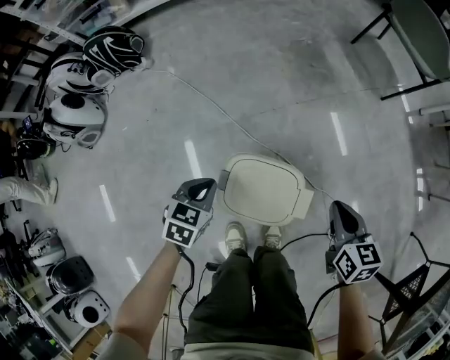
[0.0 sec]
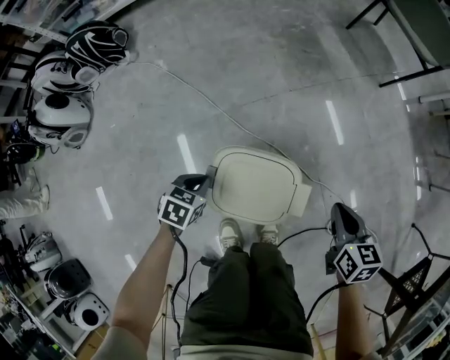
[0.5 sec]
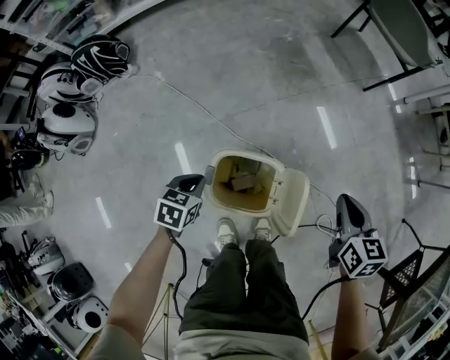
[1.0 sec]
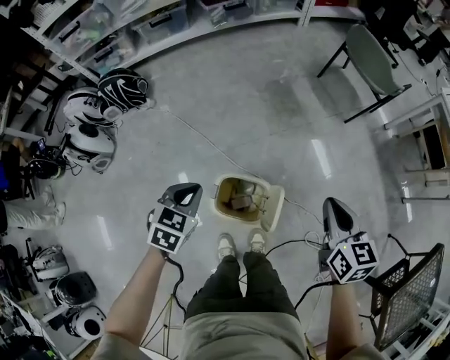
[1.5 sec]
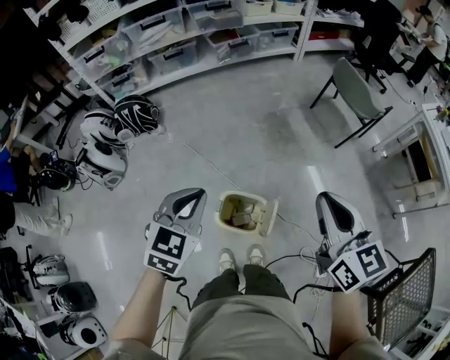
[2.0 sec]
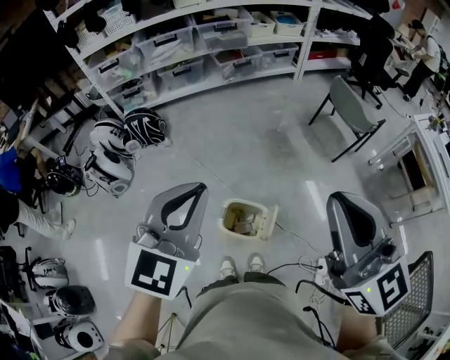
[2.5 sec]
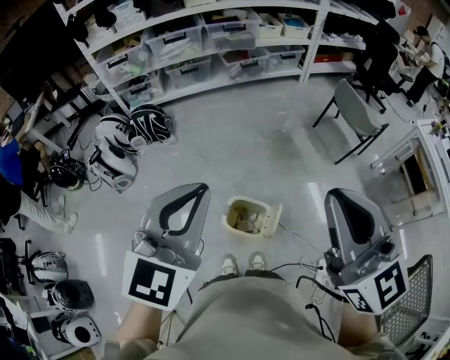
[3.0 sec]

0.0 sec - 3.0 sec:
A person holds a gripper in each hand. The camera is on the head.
0.0 sec - 1.5 sec: The grippers both shift upward by some 25 cm.
1.5 sec - 3.0 sec: The two grippers go approximately 40 cm upward. The right gripper points its fingers some 30 degrees further upward; the left gripper tilts its fingers approximately 40 degrees upward.

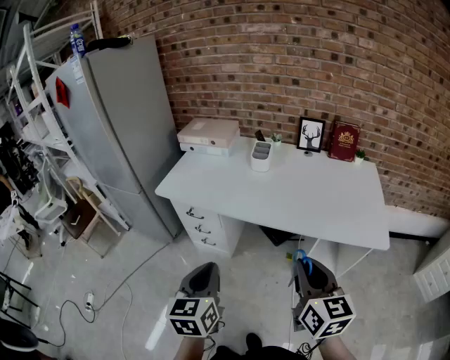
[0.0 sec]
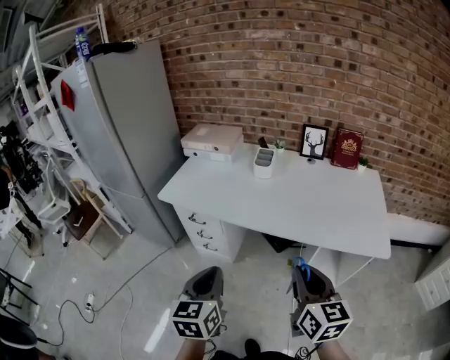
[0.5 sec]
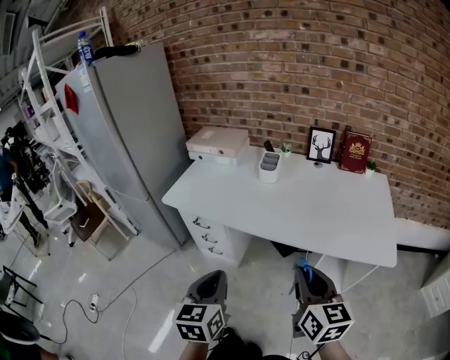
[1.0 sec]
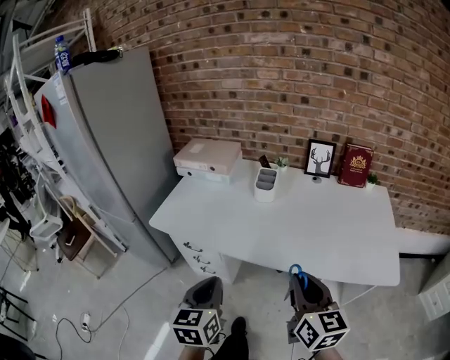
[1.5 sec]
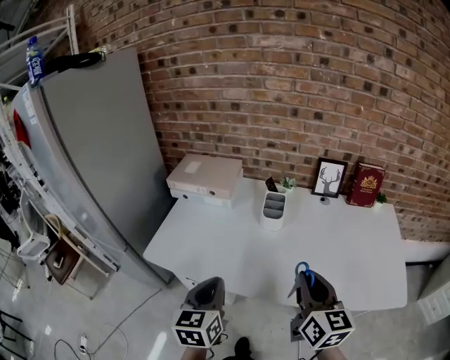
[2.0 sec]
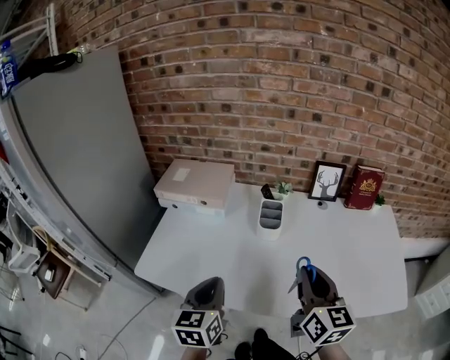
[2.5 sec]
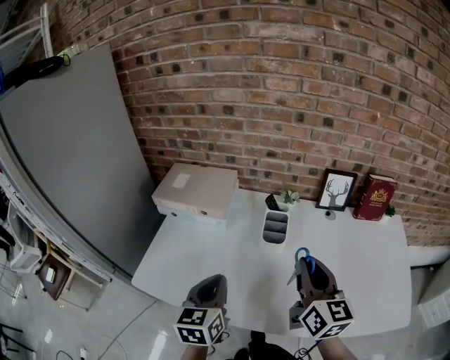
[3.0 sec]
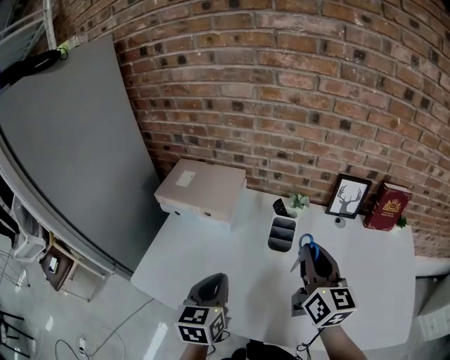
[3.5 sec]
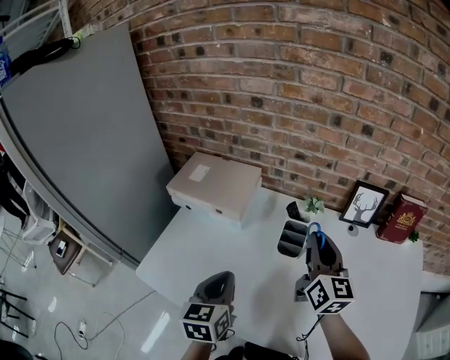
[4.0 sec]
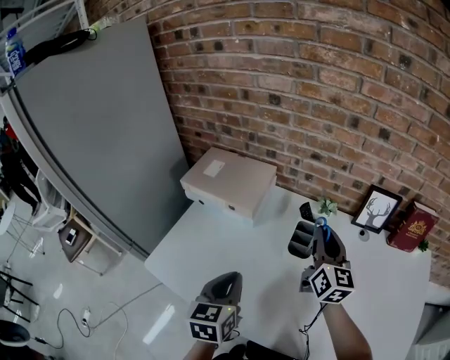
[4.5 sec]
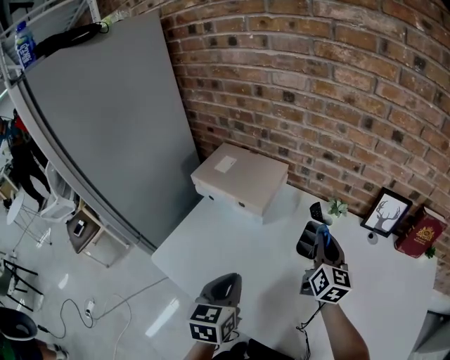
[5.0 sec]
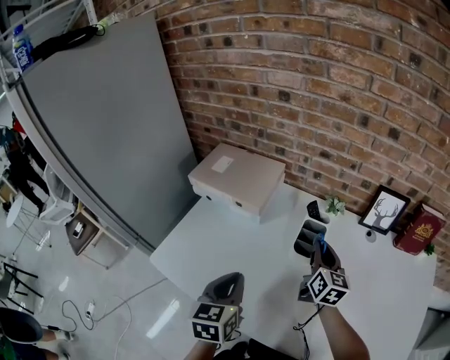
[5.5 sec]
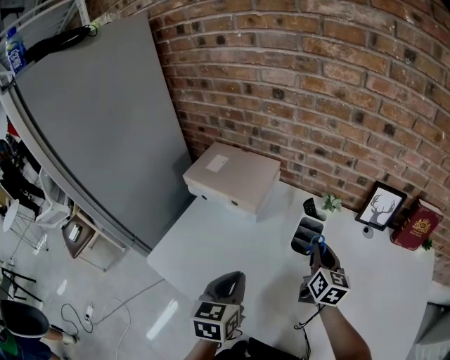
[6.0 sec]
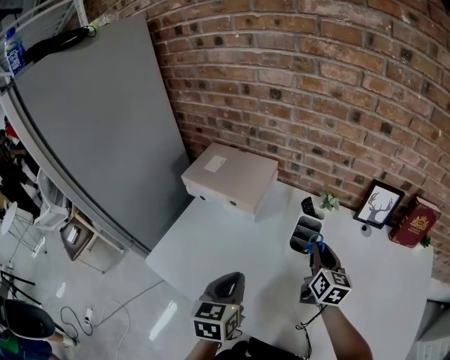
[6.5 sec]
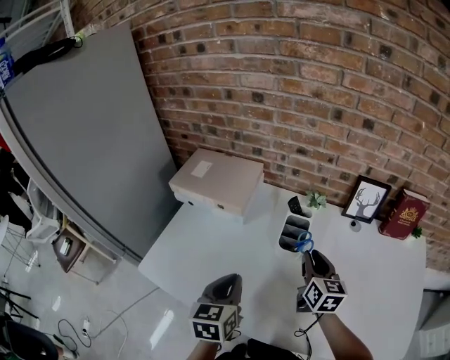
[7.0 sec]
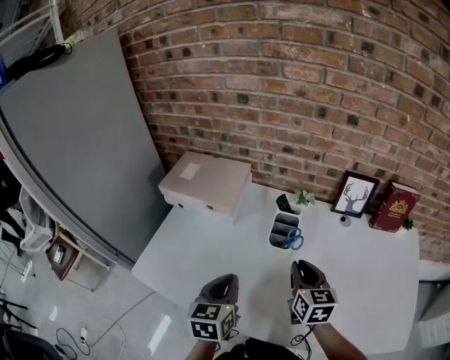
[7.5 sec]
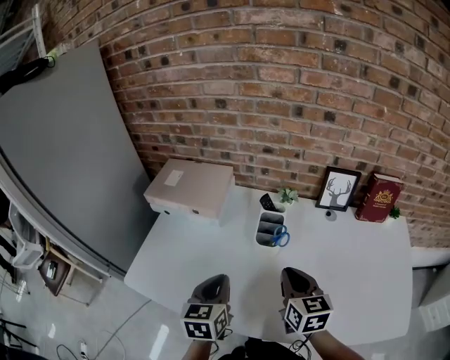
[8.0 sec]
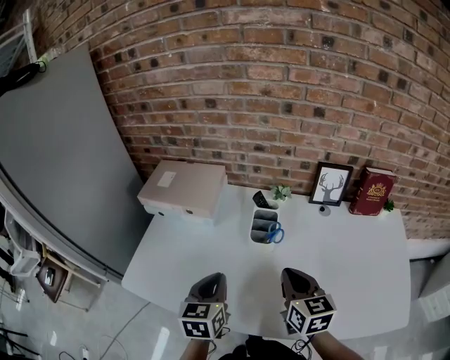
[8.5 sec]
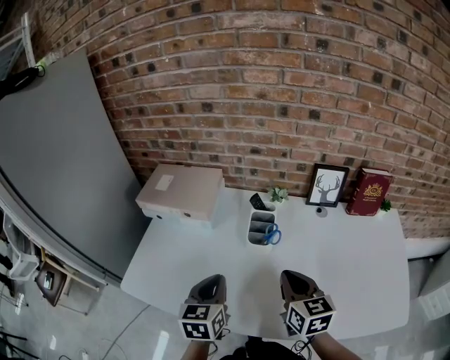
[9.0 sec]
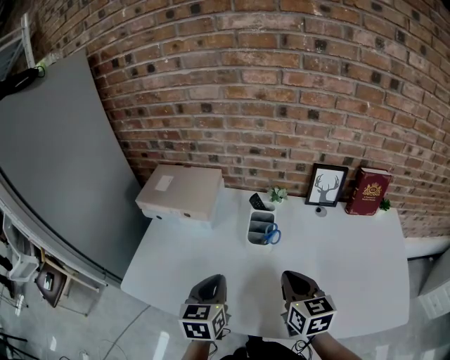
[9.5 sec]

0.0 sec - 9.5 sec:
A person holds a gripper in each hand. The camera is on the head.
0.0 sec - 2.0 sec: Both grippers move forward, roughly 30 cm.
2.0 sec - 4.0 sec: The left gripper shifts some 20 cm forward. Meanwhile the right gripper moves forward, approximately 30 cm.
4.0 sec - 5.5 sec: The right gripper is displaced downward by some 15 cm.
5.5 sec - 7.5 sec: The right gripper shifts approximately 10 cm backward.
7.5 sec - 9.5 sec: The right gripper shifts approximately 5 cm backward.

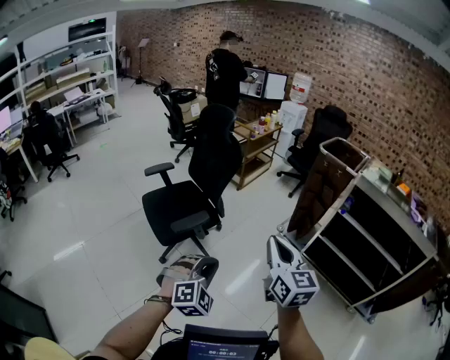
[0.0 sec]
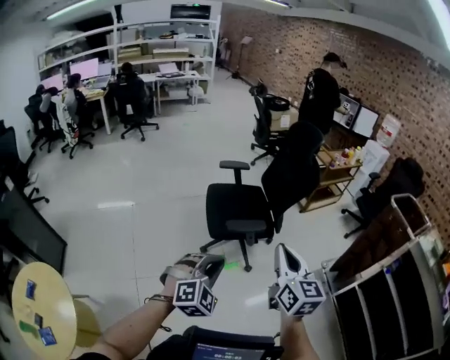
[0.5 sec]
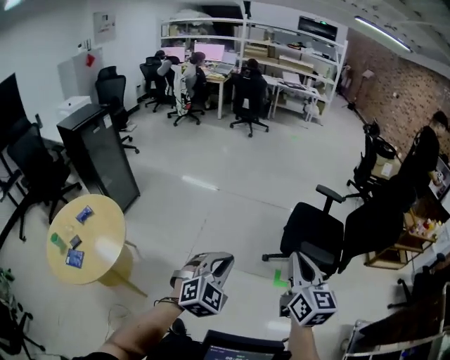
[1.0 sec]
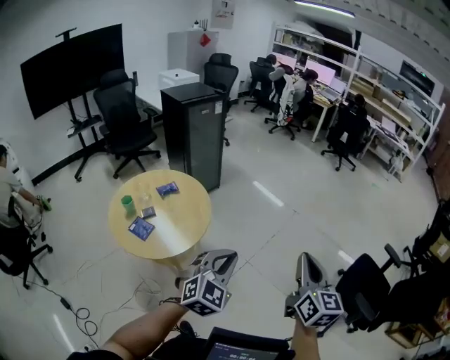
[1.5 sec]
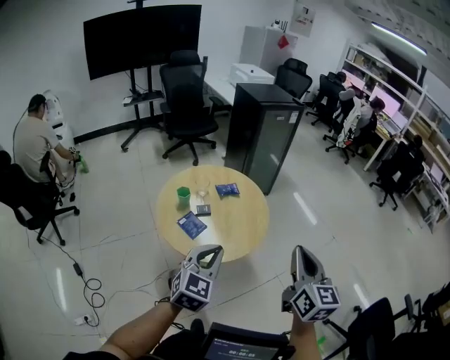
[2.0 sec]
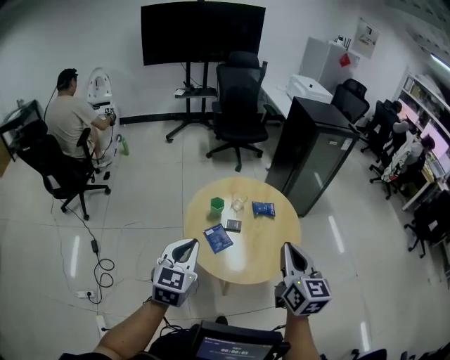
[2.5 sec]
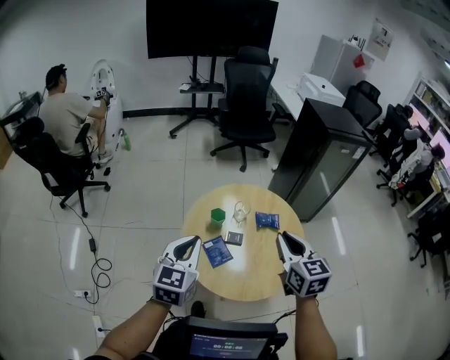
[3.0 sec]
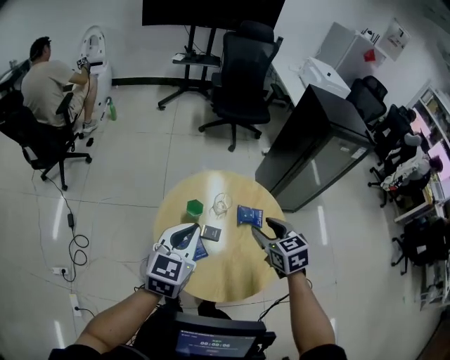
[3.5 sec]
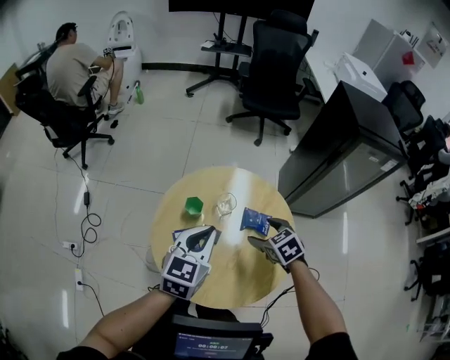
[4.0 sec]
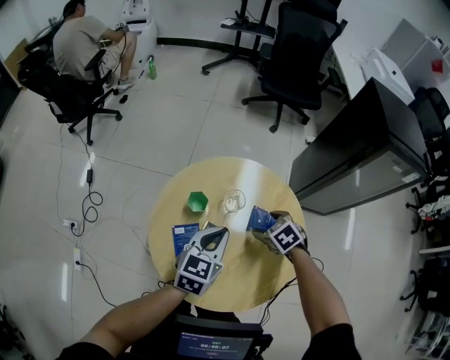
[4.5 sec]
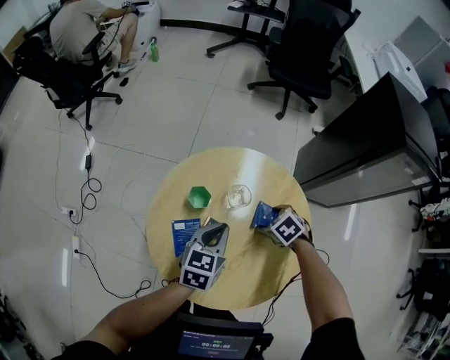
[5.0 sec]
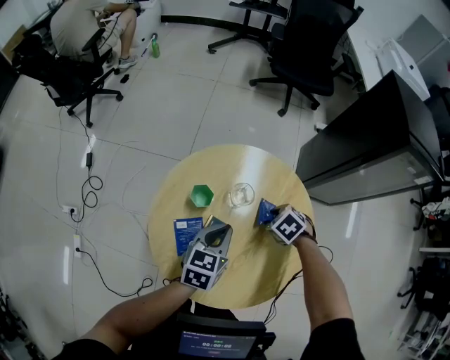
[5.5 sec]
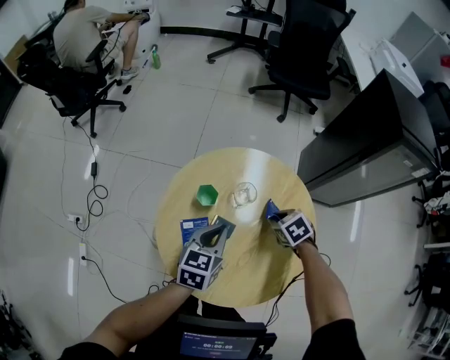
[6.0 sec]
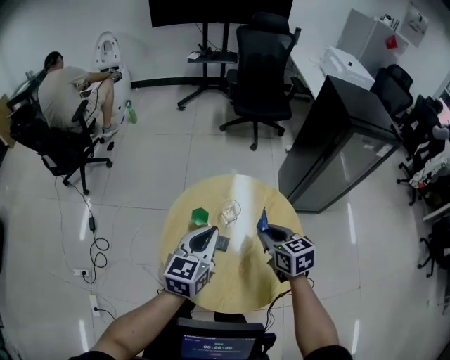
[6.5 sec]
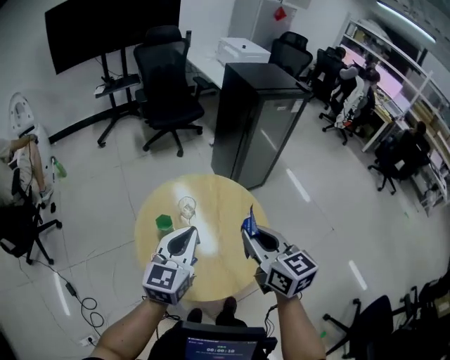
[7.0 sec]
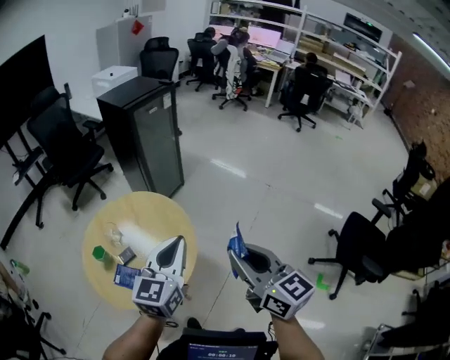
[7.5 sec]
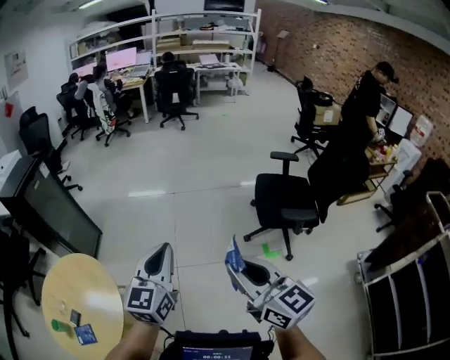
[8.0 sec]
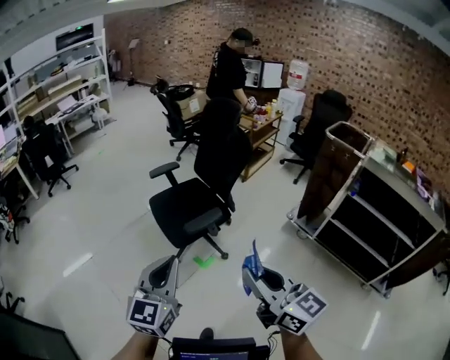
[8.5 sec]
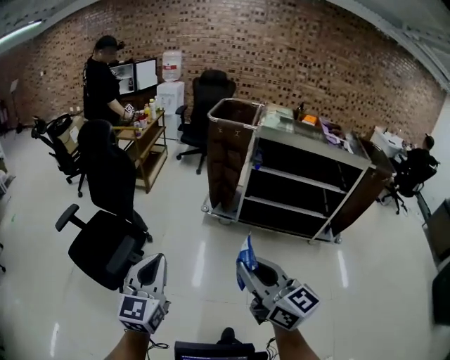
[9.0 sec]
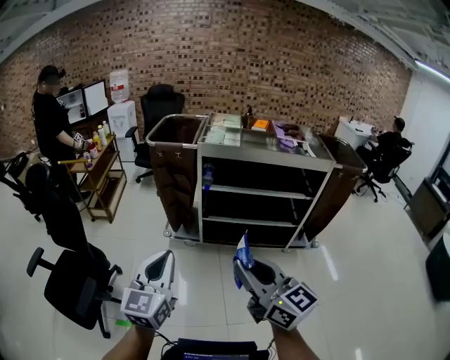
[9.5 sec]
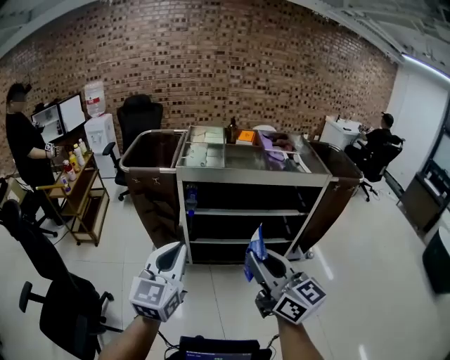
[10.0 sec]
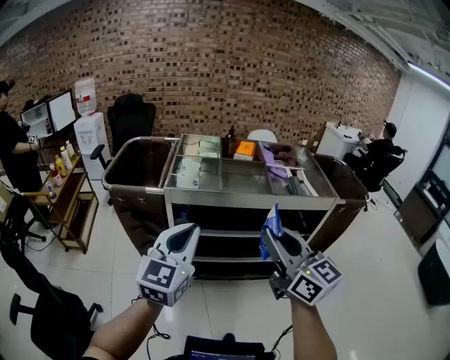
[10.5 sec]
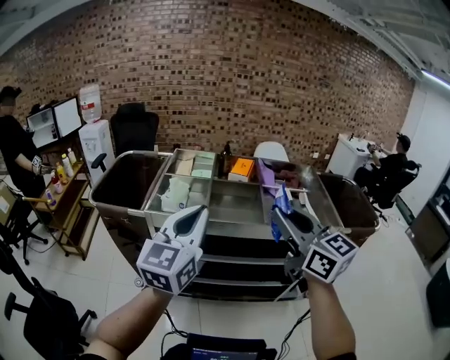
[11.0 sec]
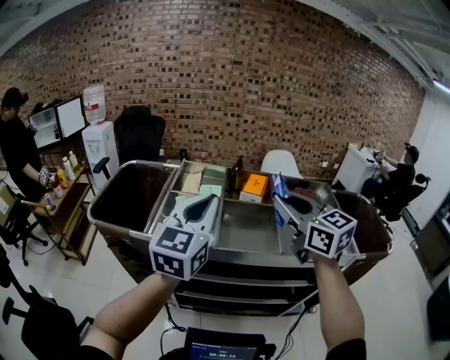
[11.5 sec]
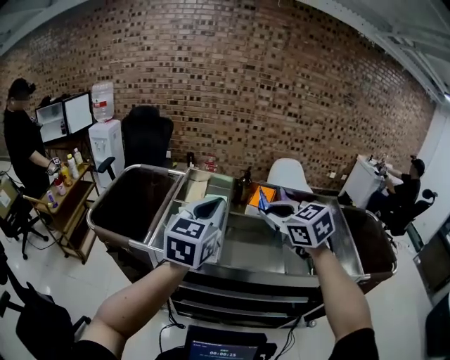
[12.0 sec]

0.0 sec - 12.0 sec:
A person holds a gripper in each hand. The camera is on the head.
0.0 sec - 2.0 sec: The pair of grippers is taken roughly 1 m. The left gripper rotates roughly 120 degrees. Meanwhile the right gripper rotates some 100 degrees.
2.0 sec - 4.0 sec: The pair of grippers is taken about 60 cm. The left gripper rotates about 40 degrees. The right gripper tips its fingers downward by some 50 degrees, and opens its fingers.
4.0 sec - 6.0 sec: The two grippers go about 15 cm downward. The right gripper closes.
6.0 sec - 8.0 sec: The pair of grippers is taken roughly 1 m. The right gripper points its fingers some 70 degrees further upward; the left gripper tips its fingers upward by some 30 degrees.
8.0 sec - 10.0 sec: Both grippers are carried roughly 1.5 m. The right gripper swivels some 100 degrees. Meanwhile the left gripper rotates roughly 100 degrees.
10.0 sec - 12.0 sec: Both grippers are carried forward, some 90 cm. The right gripper points its fingers about 40 degrees further downward.

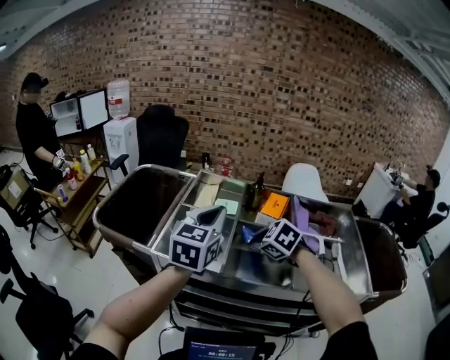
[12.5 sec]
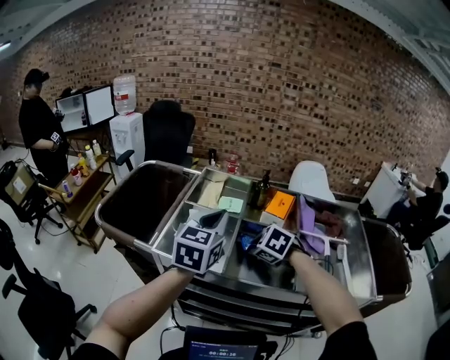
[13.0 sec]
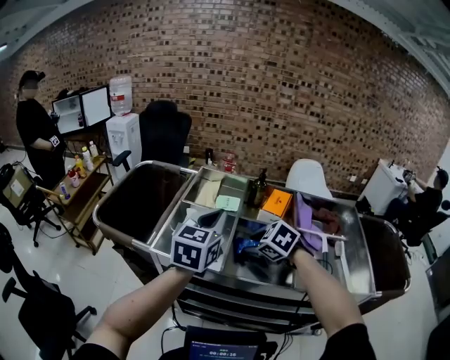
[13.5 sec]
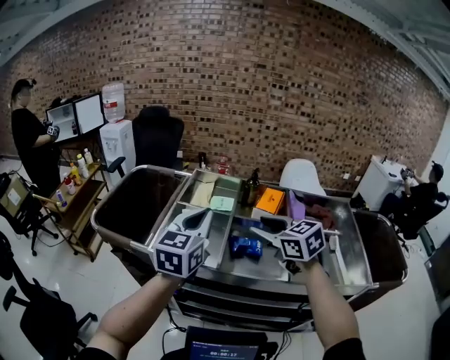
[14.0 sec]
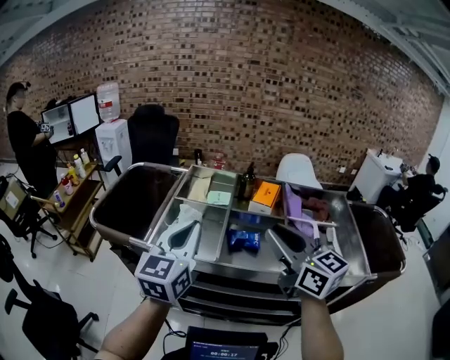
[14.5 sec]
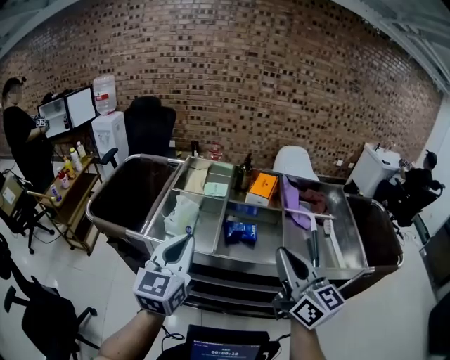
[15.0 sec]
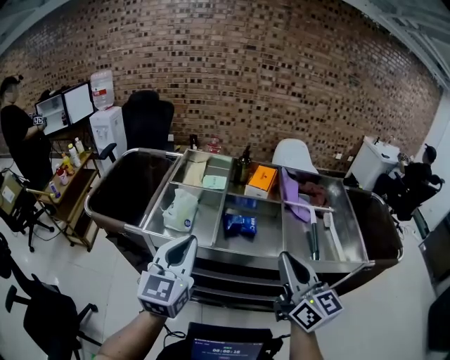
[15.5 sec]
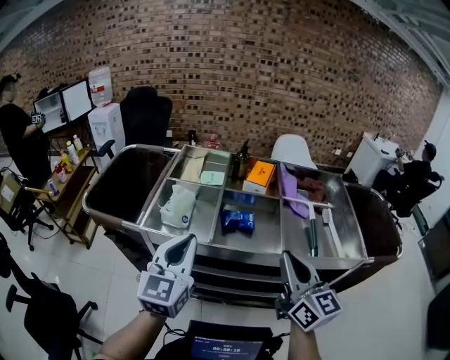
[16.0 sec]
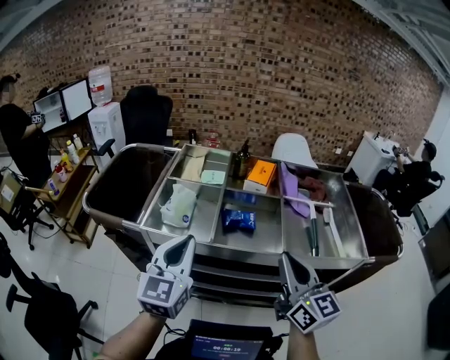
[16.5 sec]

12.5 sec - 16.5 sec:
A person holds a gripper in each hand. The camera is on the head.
12.5 sec - 14.5 sec: The left gripper moves backward, some 10 cm; the right gripper moves upward and backward, roughly 20 cm, and points its fingers about 60 degrees further upward.
14.5 sec - 16.5 sec: The right gripper travels backward, downward and to the right by some 10 cm; the left gripper goes some 5 cm downward.
